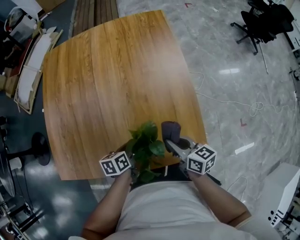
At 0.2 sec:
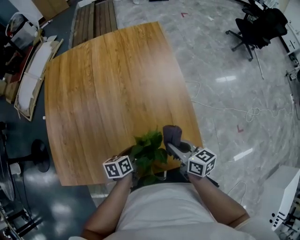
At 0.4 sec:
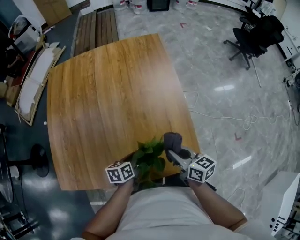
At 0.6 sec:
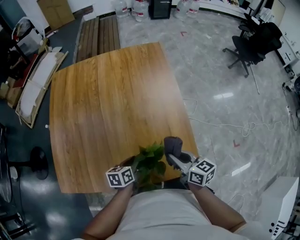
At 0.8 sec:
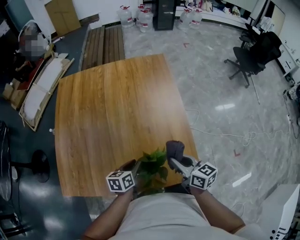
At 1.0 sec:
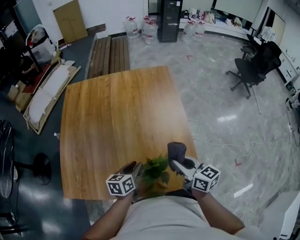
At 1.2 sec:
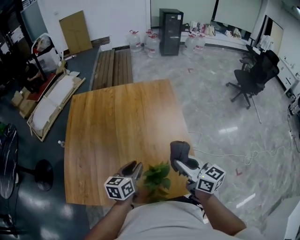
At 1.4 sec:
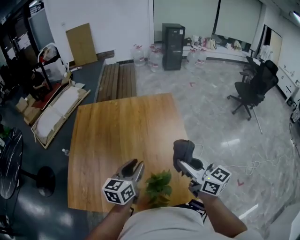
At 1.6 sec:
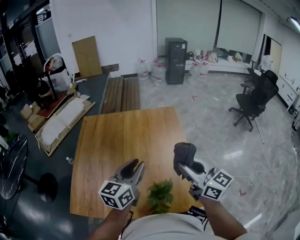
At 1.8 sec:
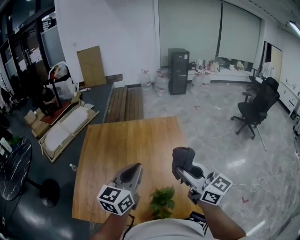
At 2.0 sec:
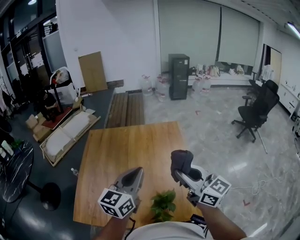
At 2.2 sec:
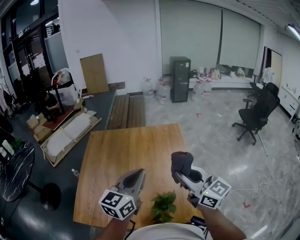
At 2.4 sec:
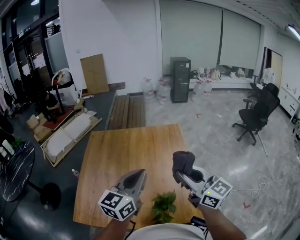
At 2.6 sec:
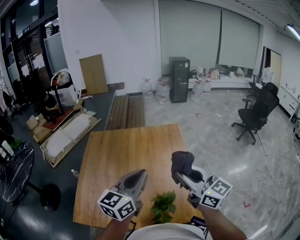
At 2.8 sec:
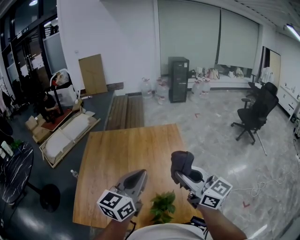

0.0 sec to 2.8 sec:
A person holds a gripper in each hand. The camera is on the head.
0.0 sec to 1.4 sec: Both grippers travel together upward, some 35 cm. The right gripper changes its angle by some 30 degrees. Meanwhile the left gripper points its fingers about 30 degrees further upward.
1.4 sec to 2.8 sec: The left gripper heads upward, covering roughly 15 cm, and closes its fingers, while the right gripper heads upward, covering some 10 cm.

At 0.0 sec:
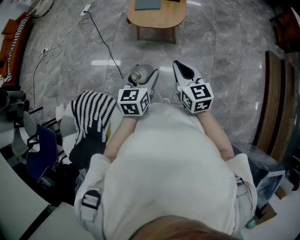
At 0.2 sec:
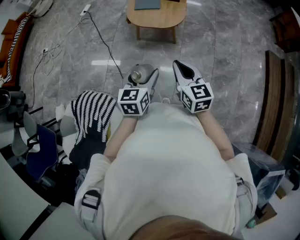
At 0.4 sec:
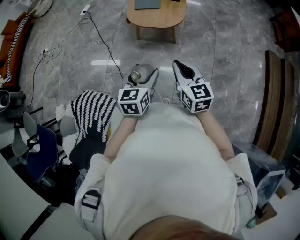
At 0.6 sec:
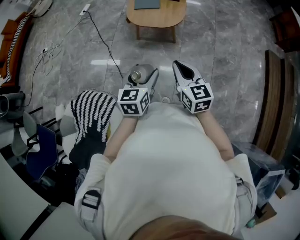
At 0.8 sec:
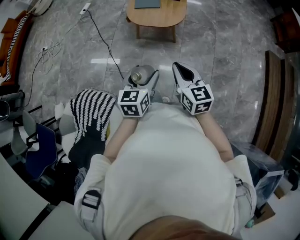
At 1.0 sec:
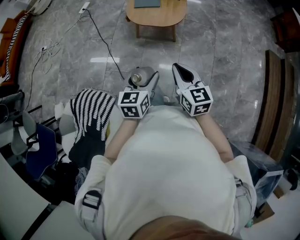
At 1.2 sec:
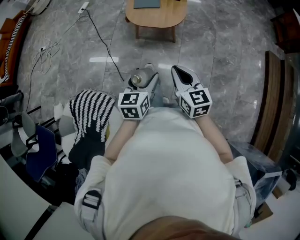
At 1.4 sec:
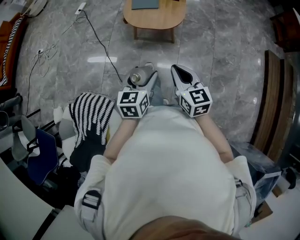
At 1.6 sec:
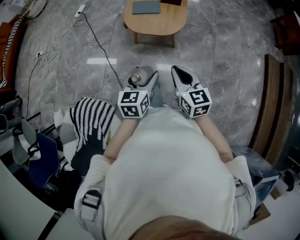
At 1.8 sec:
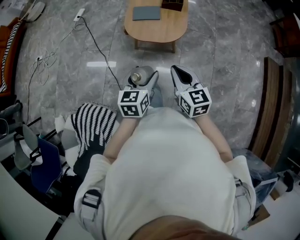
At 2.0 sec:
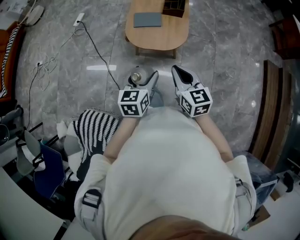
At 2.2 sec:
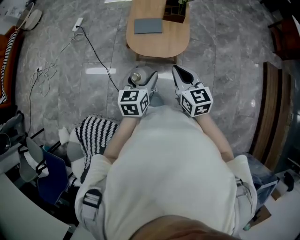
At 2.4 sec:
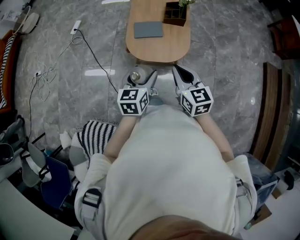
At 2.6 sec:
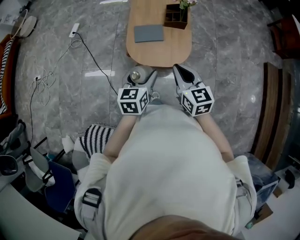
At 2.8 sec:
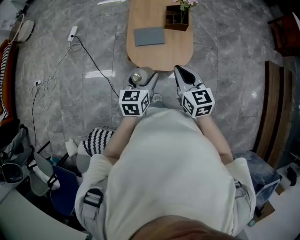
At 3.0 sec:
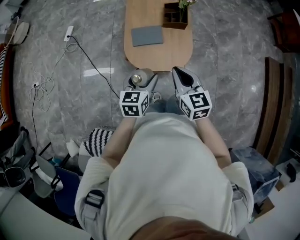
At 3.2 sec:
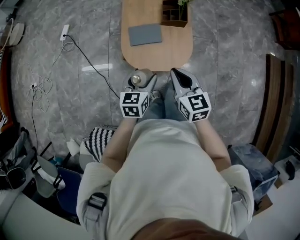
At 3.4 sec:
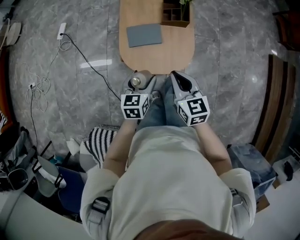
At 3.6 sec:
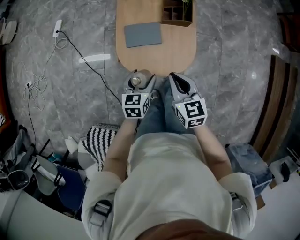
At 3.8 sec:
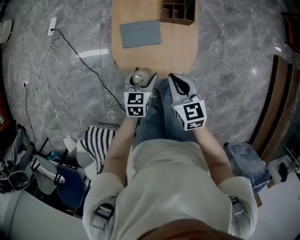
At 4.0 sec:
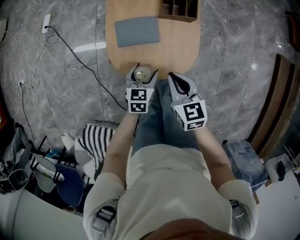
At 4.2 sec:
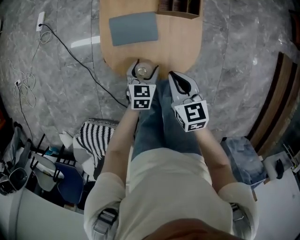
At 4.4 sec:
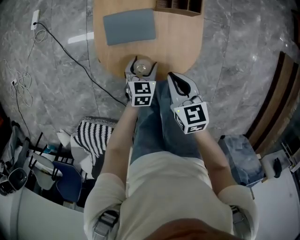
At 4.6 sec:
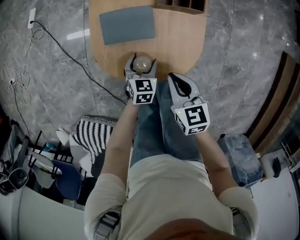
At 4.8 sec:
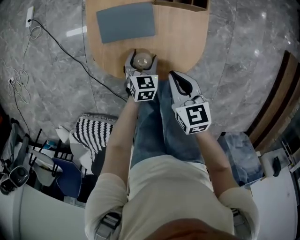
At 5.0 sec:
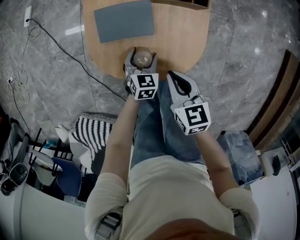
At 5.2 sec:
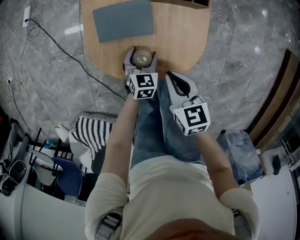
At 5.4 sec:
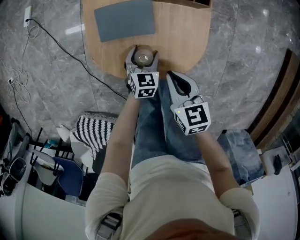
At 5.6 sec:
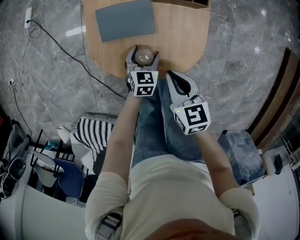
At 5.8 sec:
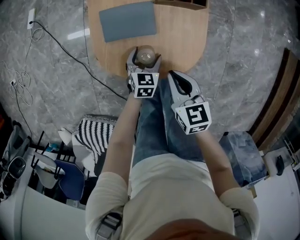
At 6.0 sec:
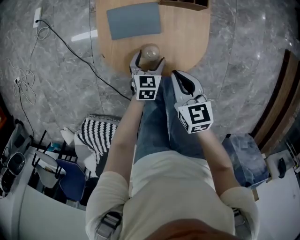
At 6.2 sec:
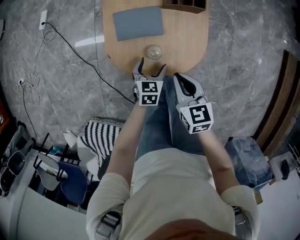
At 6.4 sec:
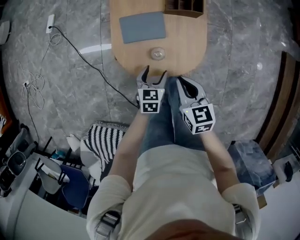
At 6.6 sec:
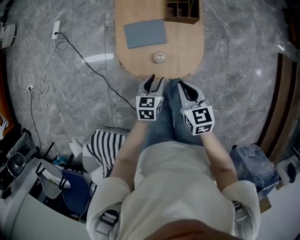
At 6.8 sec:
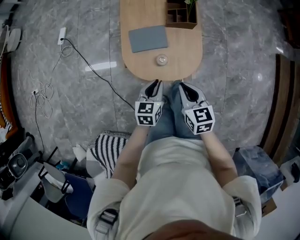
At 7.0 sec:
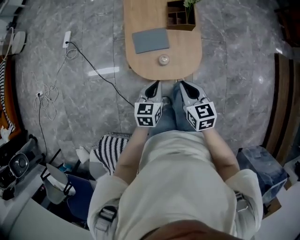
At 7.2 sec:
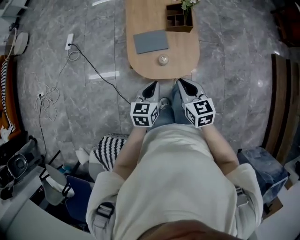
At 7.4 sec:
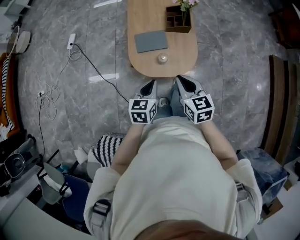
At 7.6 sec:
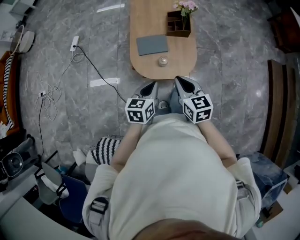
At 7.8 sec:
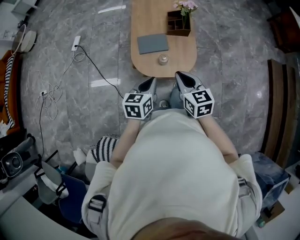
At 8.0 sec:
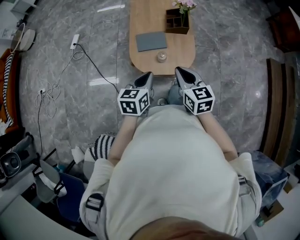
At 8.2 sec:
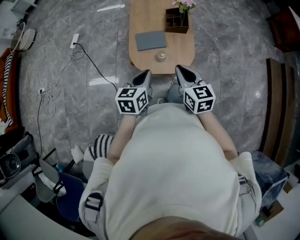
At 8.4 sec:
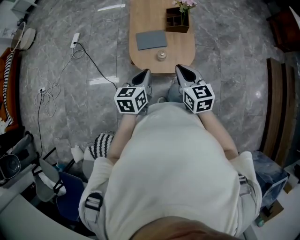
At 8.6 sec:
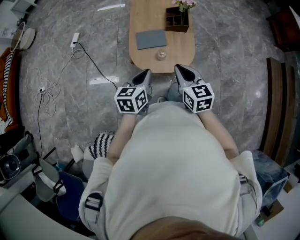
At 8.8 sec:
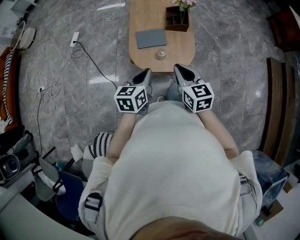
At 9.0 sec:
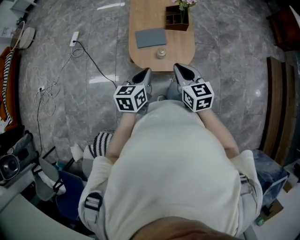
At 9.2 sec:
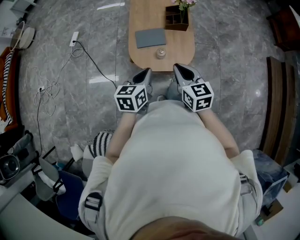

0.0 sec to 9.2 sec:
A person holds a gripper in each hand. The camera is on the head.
0.0 sec to 1.6 sec: The grippers both shift forward by approximately 10 cm.
1.6 sec to 3.0 sec: Both grippers travel together forward, roughly 30 cm.
3.0 sec to 4.6 sec: Both grippers travel together downward and forward, approximately 35 cm. The left gripper swivels about 20 degrees. Meanwhile the right gripper rotates about 20 degrees.
4.6 sec to 6.2 sec: The right gripper moves approximately 5 cm, while the left gripper changes place by approximately 5 cm.
6.2 sec to 7.6 sec: Both grippers travel together upward and backward, about 30 cm. The left gripper closes its fingers.
7.6 sec to 9.2 sec: The grippers stay close to where they were, moving slightly.

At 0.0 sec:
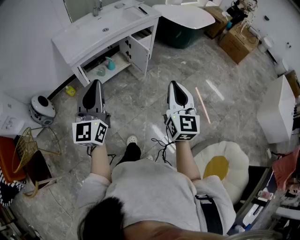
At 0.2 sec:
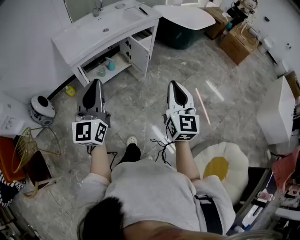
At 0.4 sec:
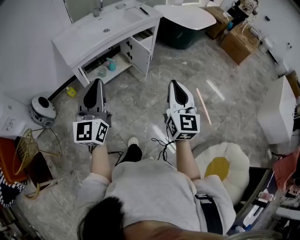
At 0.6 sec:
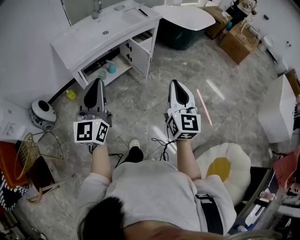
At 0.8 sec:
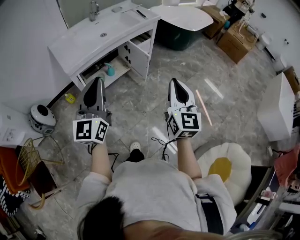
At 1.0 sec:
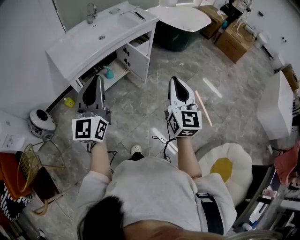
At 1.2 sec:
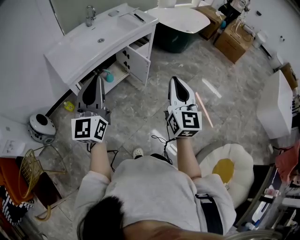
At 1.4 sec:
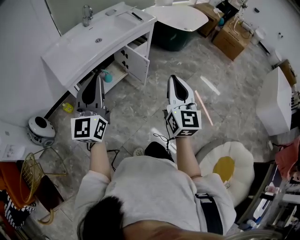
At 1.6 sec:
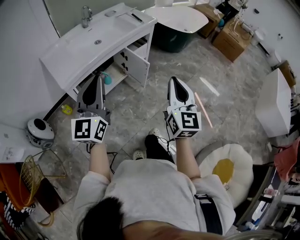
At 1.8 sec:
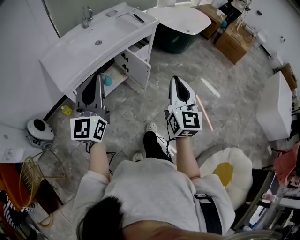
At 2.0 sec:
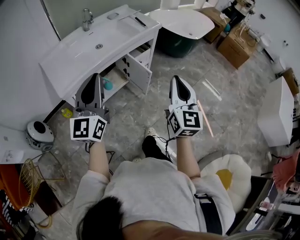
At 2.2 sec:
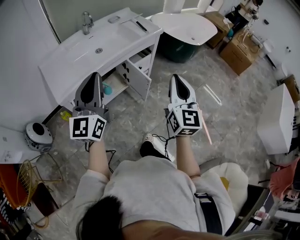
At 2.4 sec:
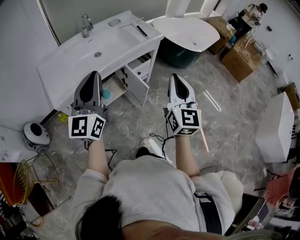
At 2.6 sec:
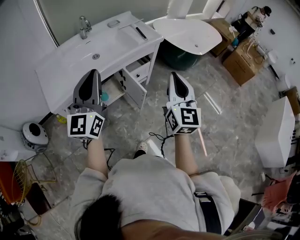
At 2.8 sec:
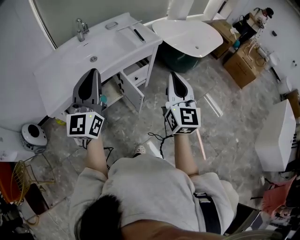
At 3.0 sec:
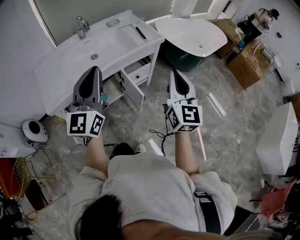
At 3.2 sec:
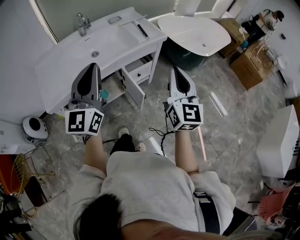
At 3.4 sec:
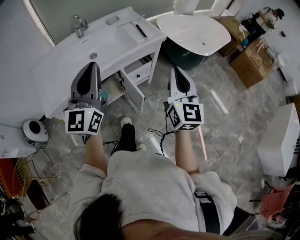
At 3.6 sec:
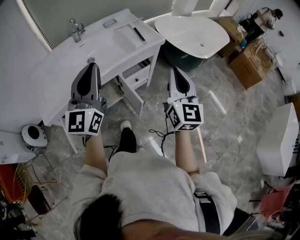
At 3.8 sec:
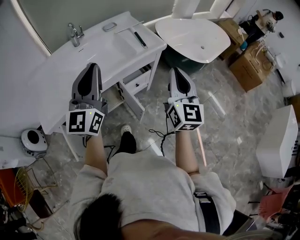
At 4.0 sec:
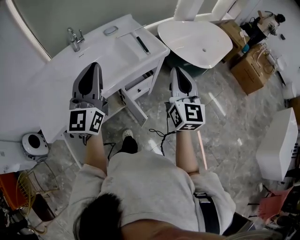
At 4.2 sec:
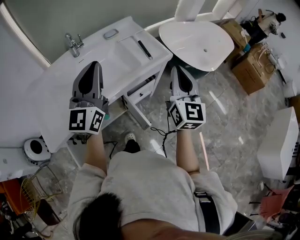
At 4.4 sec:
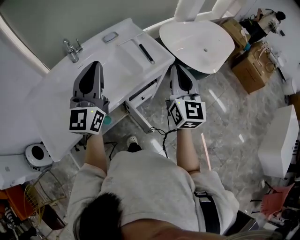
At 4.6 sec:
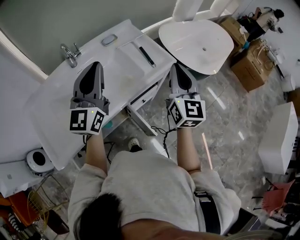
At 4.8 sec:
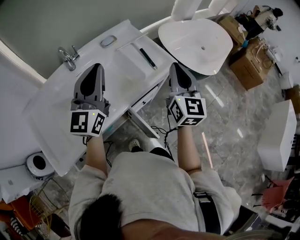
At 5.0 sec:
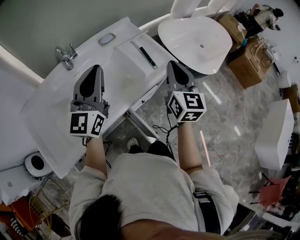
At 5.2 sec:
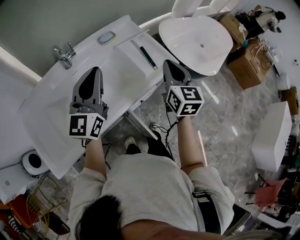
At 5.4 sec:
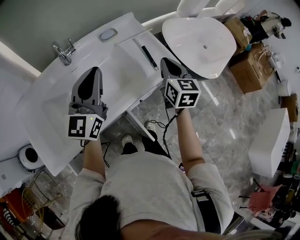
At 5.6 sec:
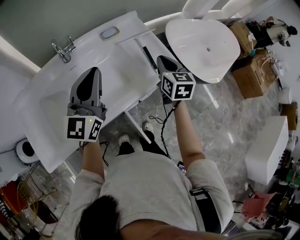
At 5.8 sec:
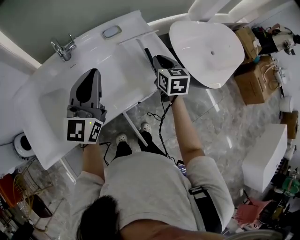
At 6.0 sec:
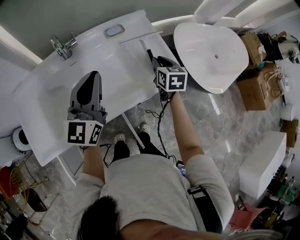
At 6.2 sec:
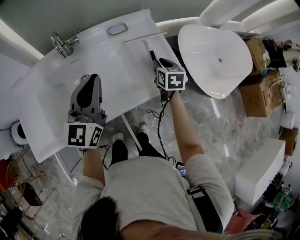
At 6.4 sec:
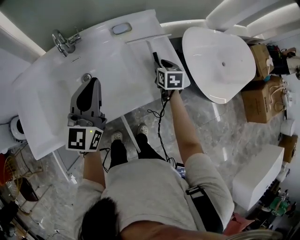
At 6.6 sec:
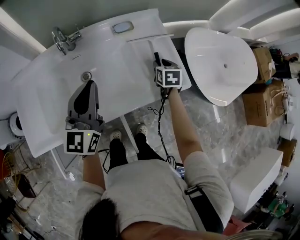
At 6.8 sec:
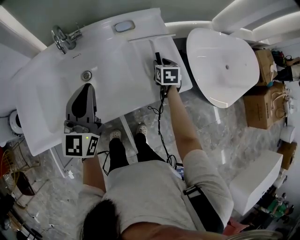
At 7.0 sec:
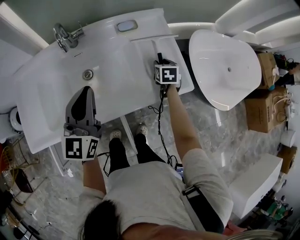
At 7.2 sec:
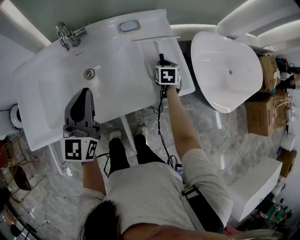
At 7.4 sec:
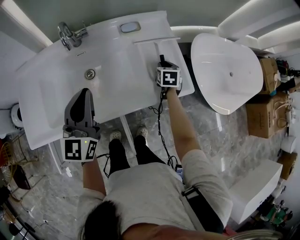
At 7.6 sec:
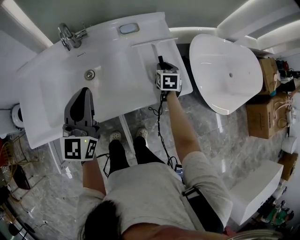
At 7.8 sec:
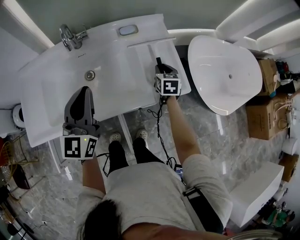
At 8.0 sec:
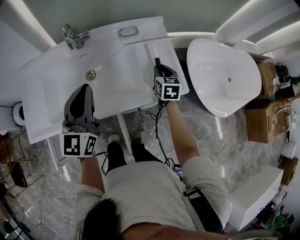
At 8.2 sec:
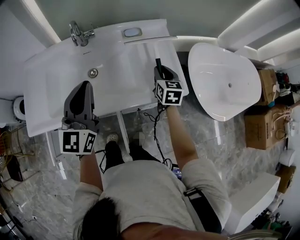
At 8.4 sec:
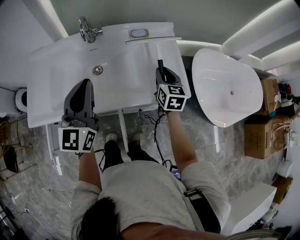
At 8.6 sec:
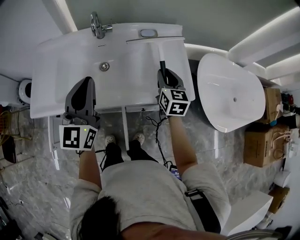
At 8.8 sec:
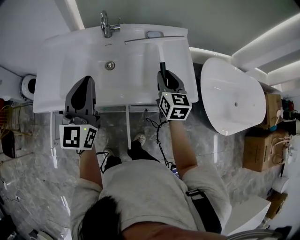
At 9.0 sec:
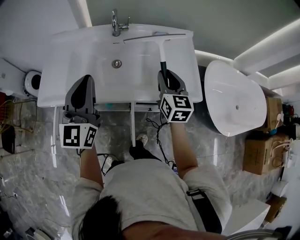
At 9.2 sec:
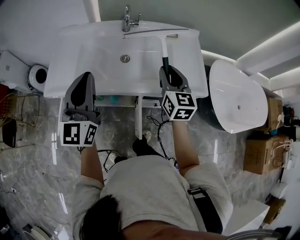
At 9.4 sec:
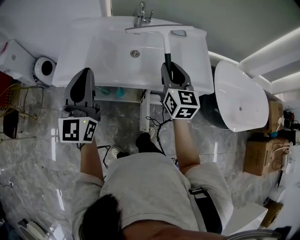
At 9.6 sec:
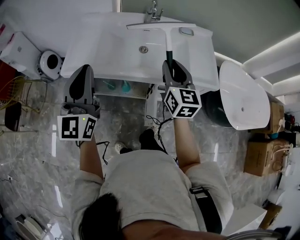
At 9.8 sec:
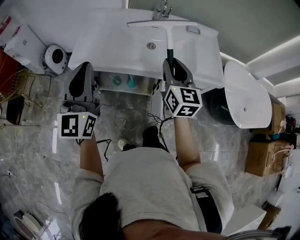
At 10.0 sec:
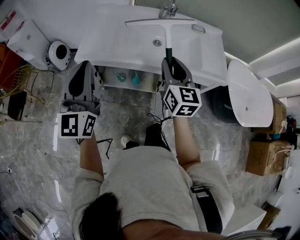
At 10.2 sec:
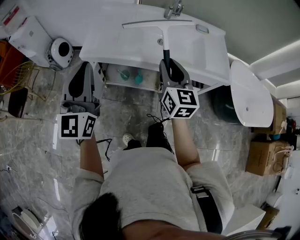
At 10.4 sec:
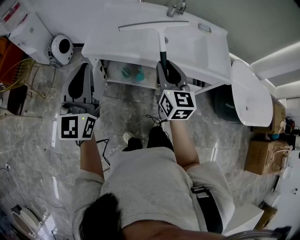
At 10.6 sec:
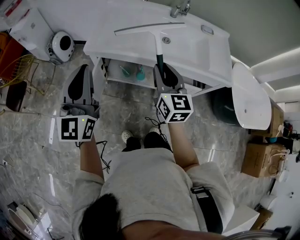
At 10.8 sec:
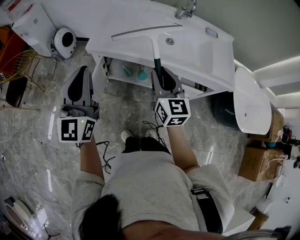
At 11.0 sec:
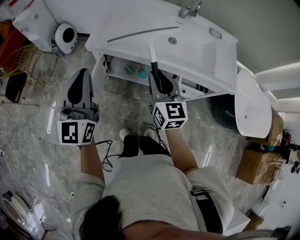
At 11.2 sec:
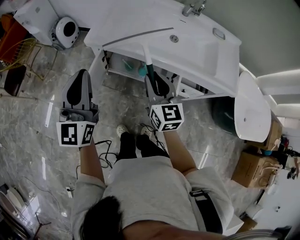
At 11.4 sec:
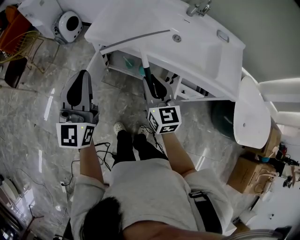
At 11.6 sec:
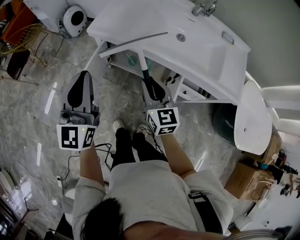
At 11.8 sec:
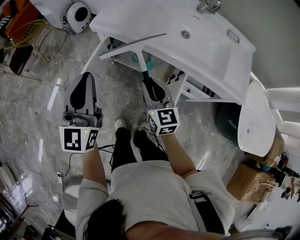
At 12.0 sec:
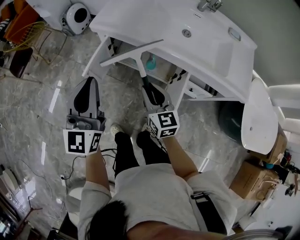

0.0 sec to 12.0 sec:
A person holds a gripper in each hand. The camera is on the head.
0.0 sec to 1.6 sec: Both grippers move forward, approximately 15 cm.
1.6 sec to 3.0 sec: Both grippers move forward, approximately 30 cm.
3.0 sec to 4.4 sec: The grippers both shift forward by about 30 cm.
4.4 sec to 6.0 sec: The right gripper is displaced forward and downward by approximately 35 cm, and tips its fingers downward by approximately 40 degrees. Meanwhile the left gripper is displaced forward and downward by roughly 15 cm.
6.0 sec to 7.6 sec: The left gripper moves some 5 cm. The right gripper heads downward and forward, covering roughly 15 cm.
7.6 sec to 9.0 sec: The left gripper moves backward, to the left and upward, approximately 15 cm. Meanwhile the right gripper heads upward, to the left and backward, covering roughly 25 cm, and turns by about 40 degrees.
9.0 sec to 10.4 sec: The grippers both shift to the left and backward by about 35 cm.
10.4 sec to 12.0 sec: The left gripper heads downward and backward, covering approximately 10 cm, while the right gripper moves downward, some 20 cm, and rotates approximately 30 degrees.
